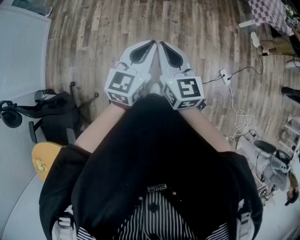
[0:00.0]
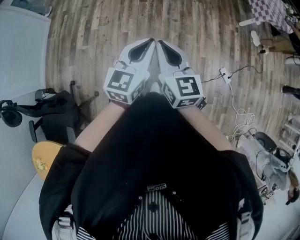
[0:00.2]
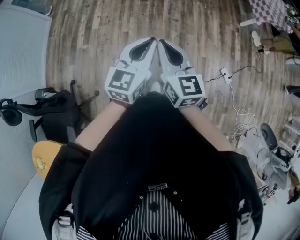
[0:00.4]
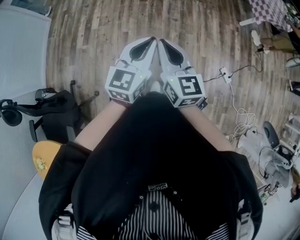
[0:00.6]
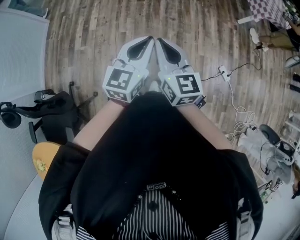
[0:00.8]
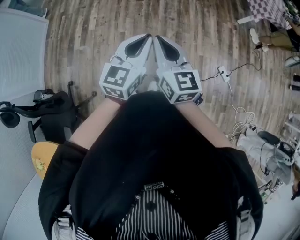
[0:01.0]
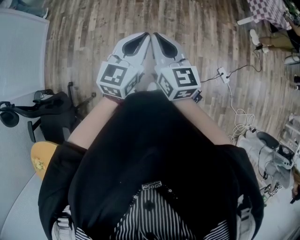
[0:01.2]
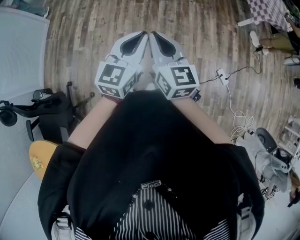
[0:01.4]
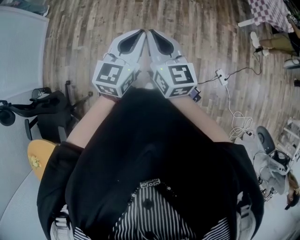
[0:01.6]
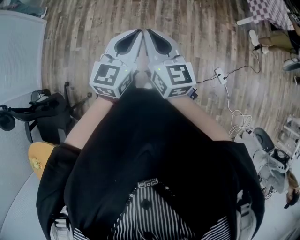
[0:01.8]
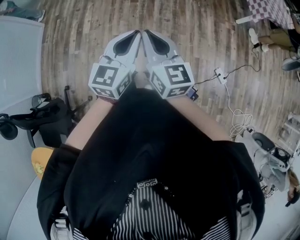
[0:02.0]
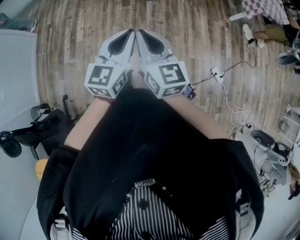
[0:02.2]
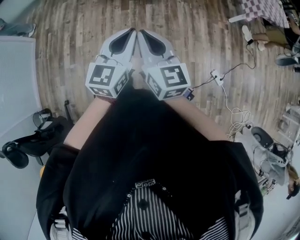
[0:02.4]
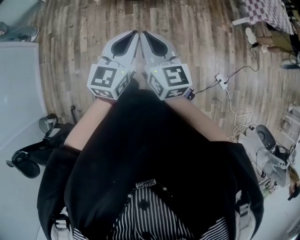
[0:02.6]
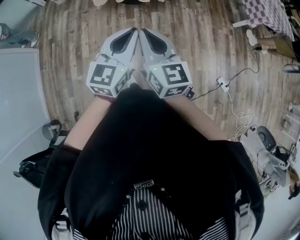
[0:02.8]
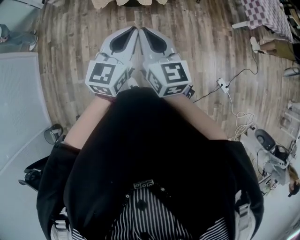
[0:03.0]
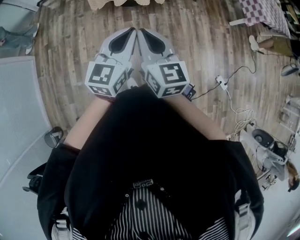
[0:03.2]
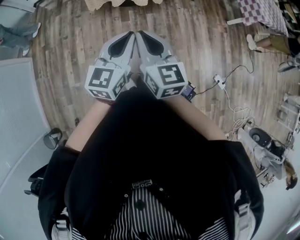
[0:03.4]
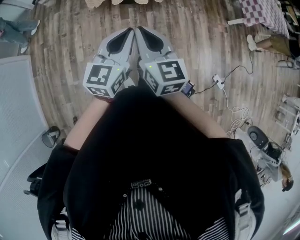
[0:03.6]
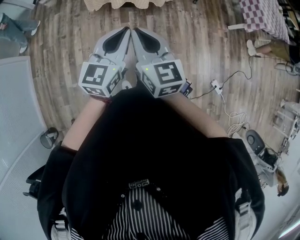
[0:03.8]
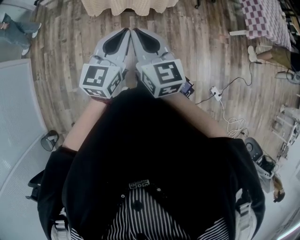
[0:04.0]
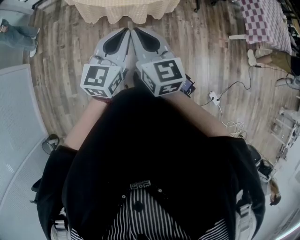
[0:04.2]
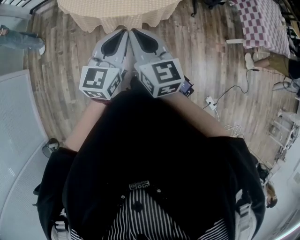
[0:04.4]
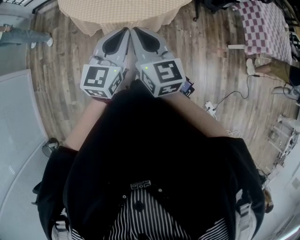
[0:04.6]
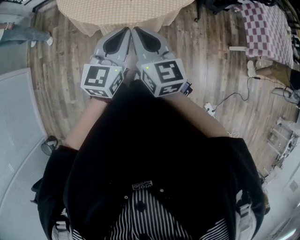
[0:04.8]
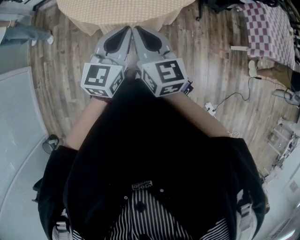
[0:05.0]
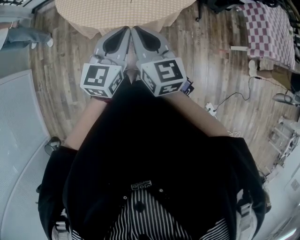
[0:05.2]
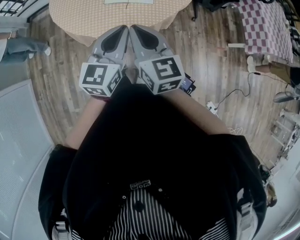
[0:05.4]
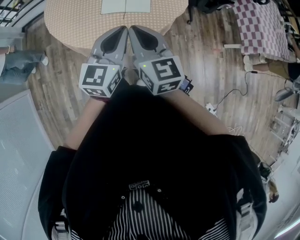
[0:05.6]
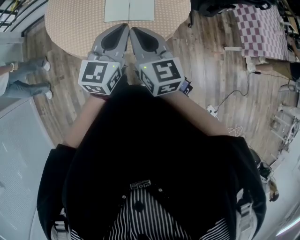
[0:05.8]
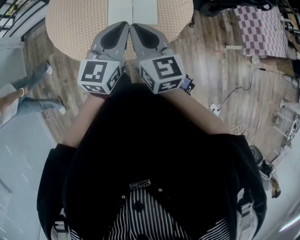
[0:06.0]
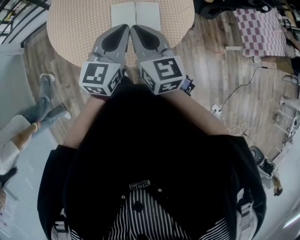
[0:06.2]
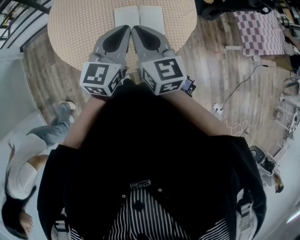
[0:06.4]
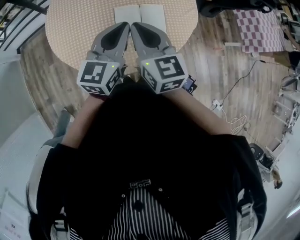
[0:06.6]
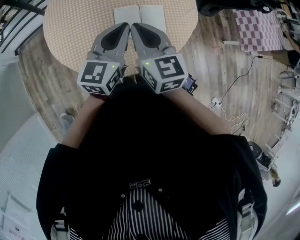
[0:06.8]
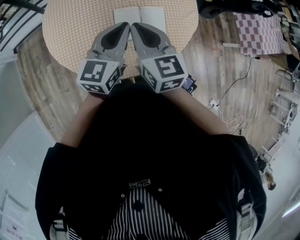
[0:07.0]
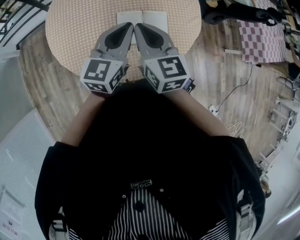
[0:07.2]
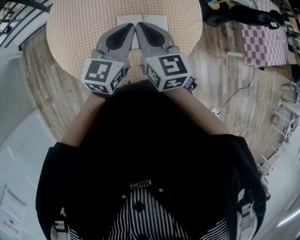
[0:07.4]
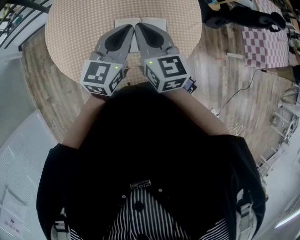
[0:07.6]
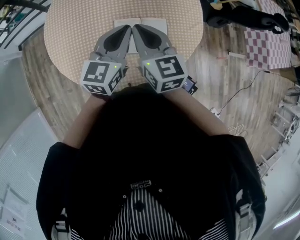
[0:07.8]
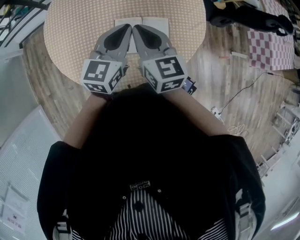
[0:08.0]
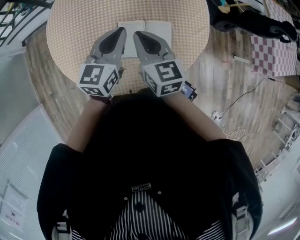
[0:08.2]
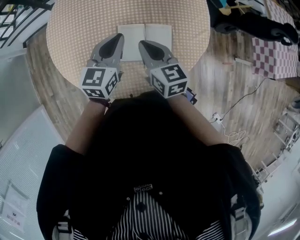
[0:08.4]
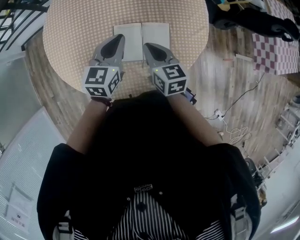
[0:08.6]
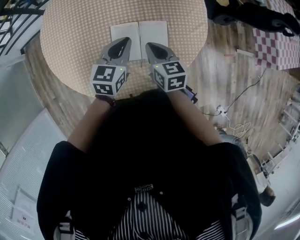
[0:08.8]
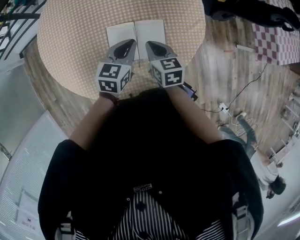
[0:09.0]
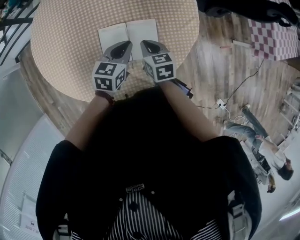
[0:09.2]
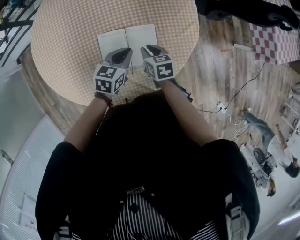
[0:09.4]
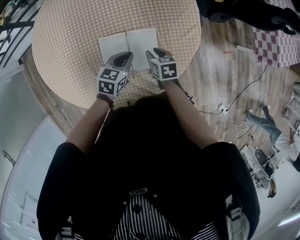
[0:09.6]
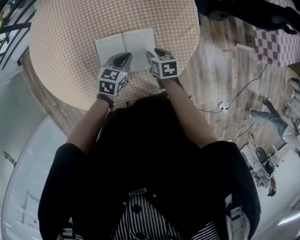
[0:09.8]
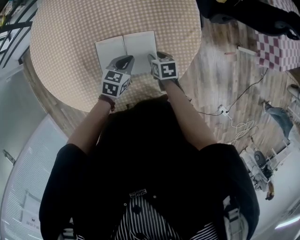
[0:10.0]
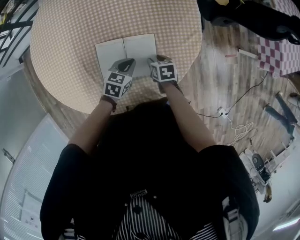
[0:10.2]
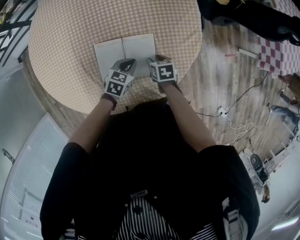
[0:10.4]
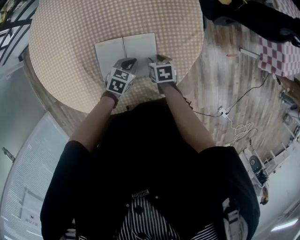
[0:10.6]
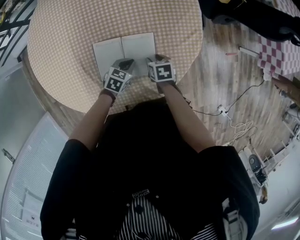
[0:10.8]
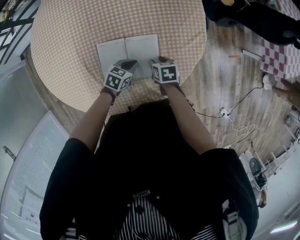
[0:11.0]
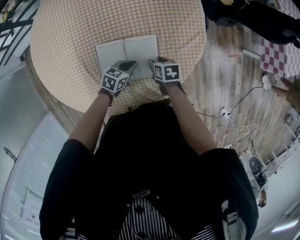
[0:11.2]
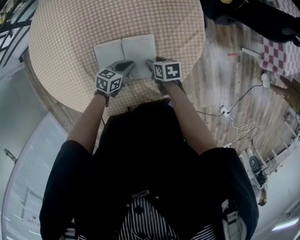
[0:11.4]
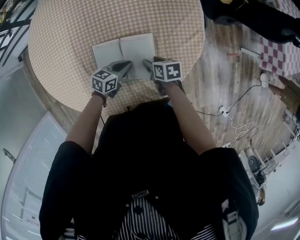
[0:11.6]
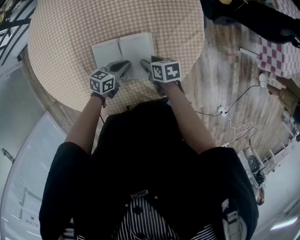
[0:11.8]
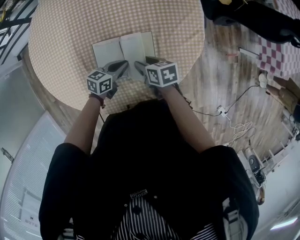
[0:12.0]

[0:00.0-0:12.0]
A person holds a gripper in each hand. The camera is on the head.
0:00.0 to 0:01.6: The right gripper goes some 5 cm to the right. The left gripper ends up about 5 cm from where it was.
0:01.6 to 0:03.0: The pair of grippers is taken forward, approximately 40 cm.
0:03.0 to 0:04.4: The two grippers go roughly 35 cm forward.
0:04.4 to 0:06.0: Both grippers travel together forward, roughly 35 cm.
0:06.0 to 0:07.6: Both grippers travel together forward, approximately 20 cm.
0:07.6 to 0:09.0: The left gripper moves downward, approximately 15 cm, and changes its angle by roughly 20 degrees. Meanwhile the right gripper moves downward and to the right, some 25 cm, and rotates roughly 30 degrees.
0:09.0 to 0:10.4: The right gripper shifts some 20 cm downward and to the right, turns by roughly 30 degrees, and opens up. Meanwhile the left gripper goes roughly 15 cm downward, and rotates some 20 degrees.
0:10.4 to 0:12.0: The left gripper changes its angle by roughly 30 degrees; the right gripper shifts about 10 cm upward.

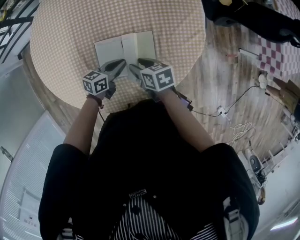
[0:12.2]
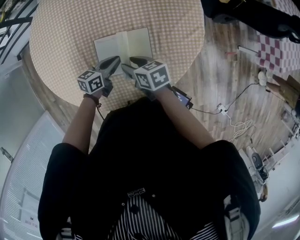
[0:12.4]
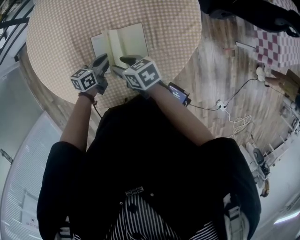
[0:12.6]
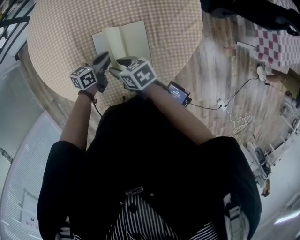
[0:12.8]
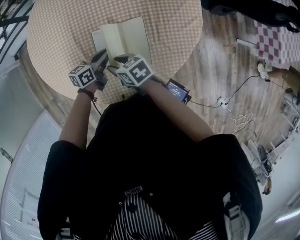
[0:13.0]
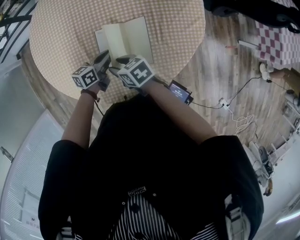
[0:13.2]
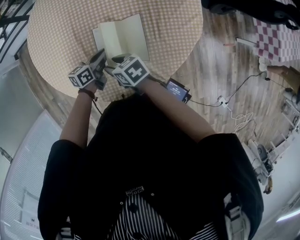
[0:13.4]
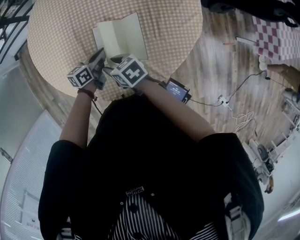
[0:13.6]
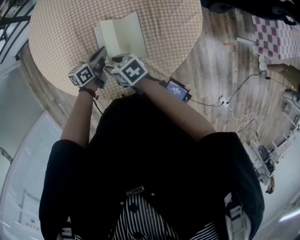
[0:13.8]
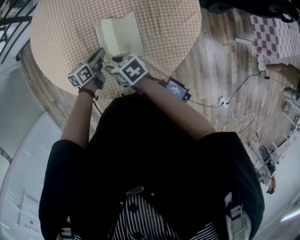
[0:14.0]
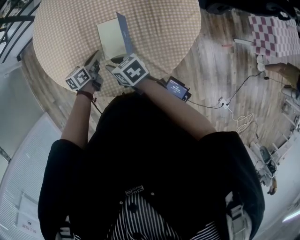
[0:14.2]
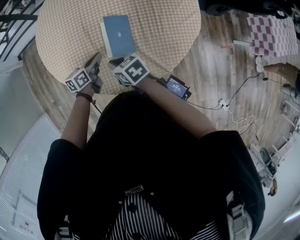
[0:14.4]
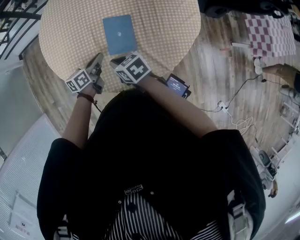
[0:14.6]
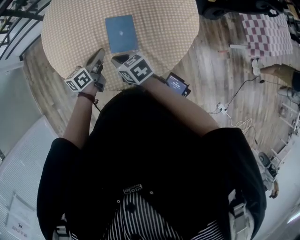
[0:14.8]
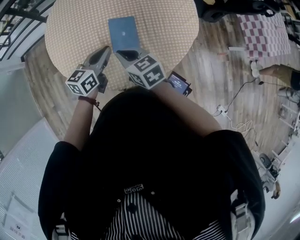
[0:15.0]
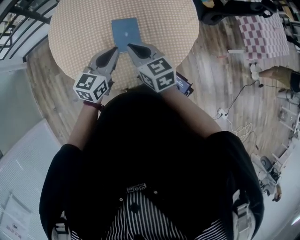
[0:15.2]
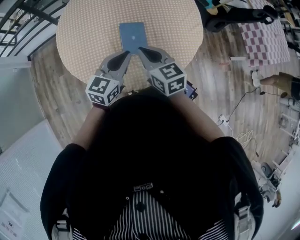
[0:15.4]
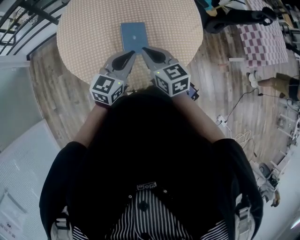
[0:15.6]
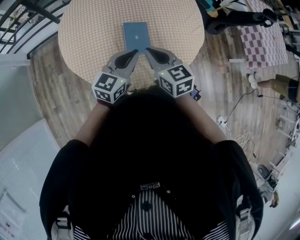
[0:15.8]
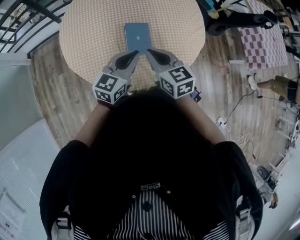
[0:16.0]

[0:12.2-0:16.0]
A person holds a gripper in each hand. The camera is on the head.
0:12.2 to 0:13.4: The right gripper shifts roughly 15 cm to the left. Meanwhile the left gripper travels to the left by approximately 10 cm.
0:13.4 to 0:14.8: The right gripper is displaced upward, backward and to the left by roughly 10 cm, and closes its fingers. Meanwhile the left gripper moves to the left, upward and backward, about 15 cm.
0:14.8 to 0:16.0: The left gripper travels upward and backward by about 15 cm, and swivels some 40 degrees. Meanwhile the right gripper shifts about 15 cm upward, and swivels roughly 30 degrees.

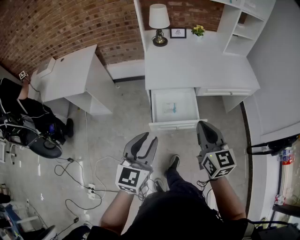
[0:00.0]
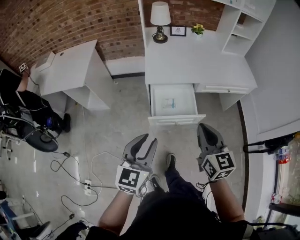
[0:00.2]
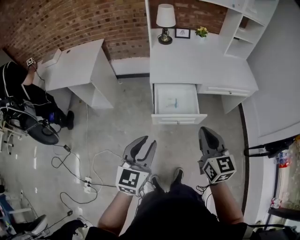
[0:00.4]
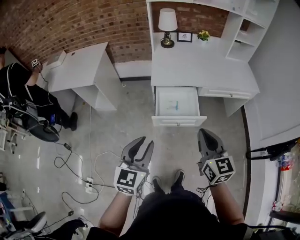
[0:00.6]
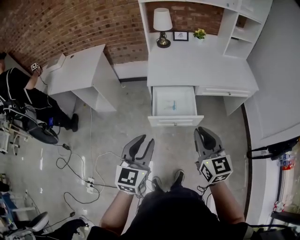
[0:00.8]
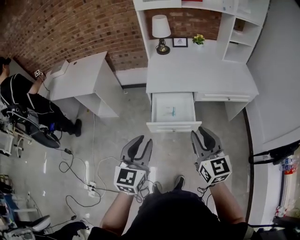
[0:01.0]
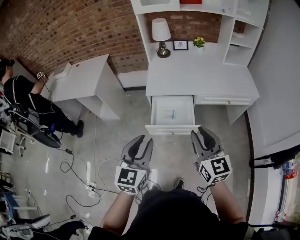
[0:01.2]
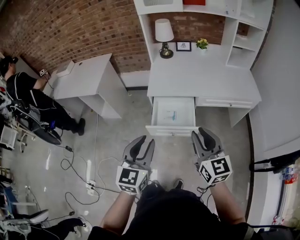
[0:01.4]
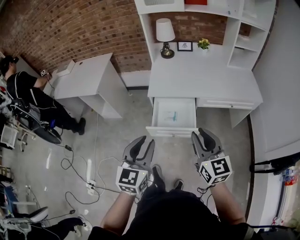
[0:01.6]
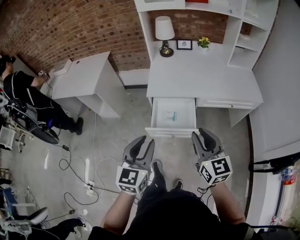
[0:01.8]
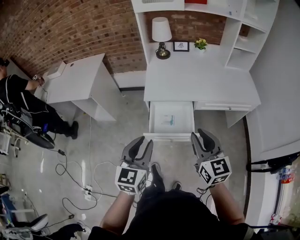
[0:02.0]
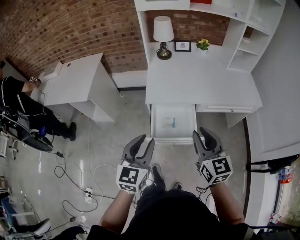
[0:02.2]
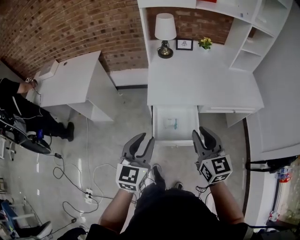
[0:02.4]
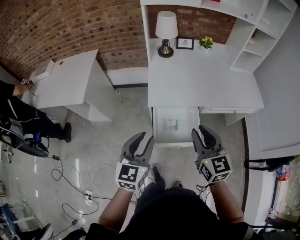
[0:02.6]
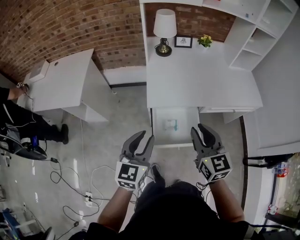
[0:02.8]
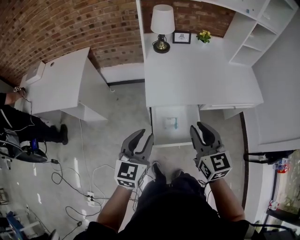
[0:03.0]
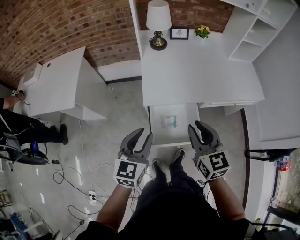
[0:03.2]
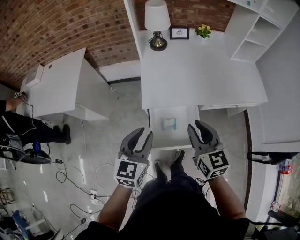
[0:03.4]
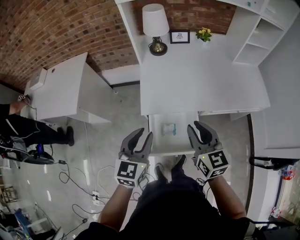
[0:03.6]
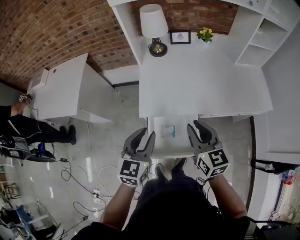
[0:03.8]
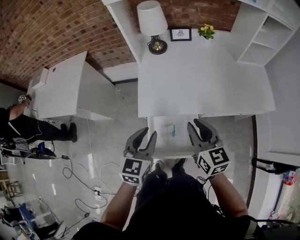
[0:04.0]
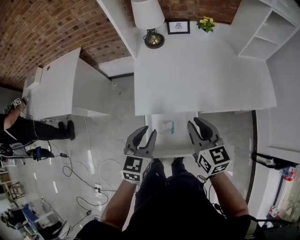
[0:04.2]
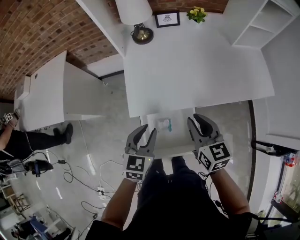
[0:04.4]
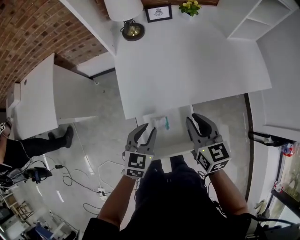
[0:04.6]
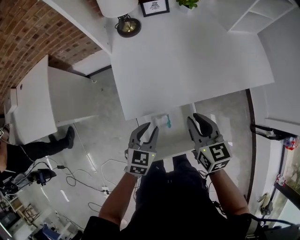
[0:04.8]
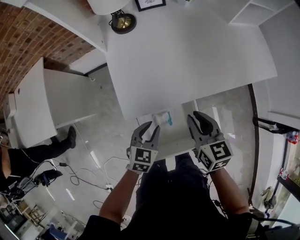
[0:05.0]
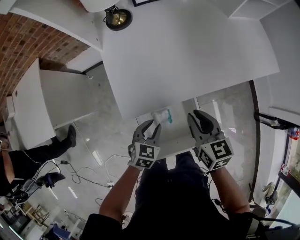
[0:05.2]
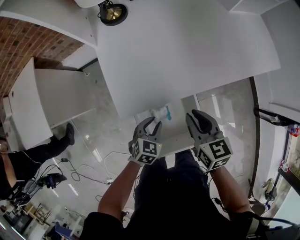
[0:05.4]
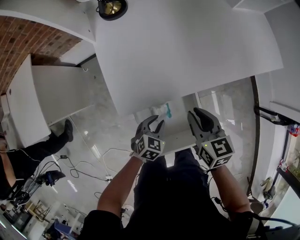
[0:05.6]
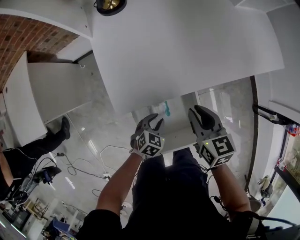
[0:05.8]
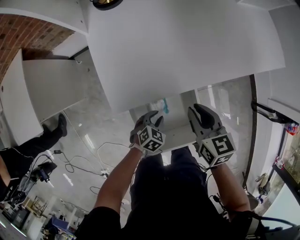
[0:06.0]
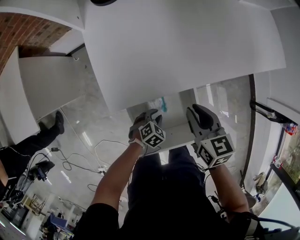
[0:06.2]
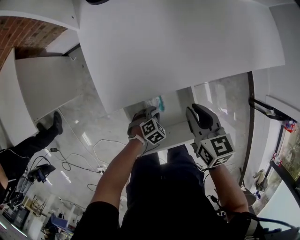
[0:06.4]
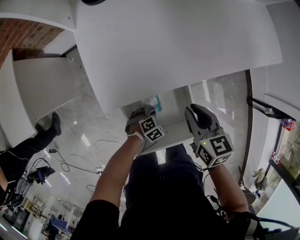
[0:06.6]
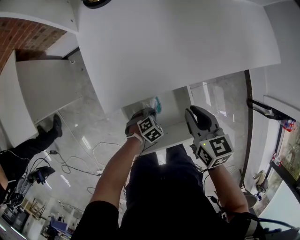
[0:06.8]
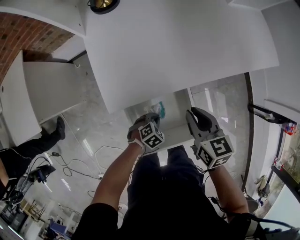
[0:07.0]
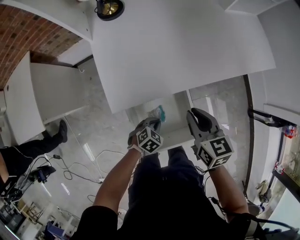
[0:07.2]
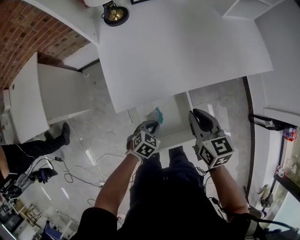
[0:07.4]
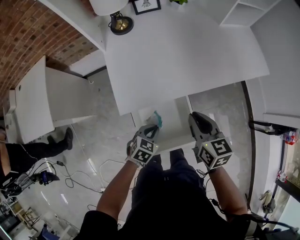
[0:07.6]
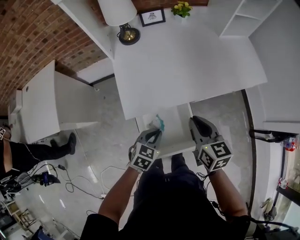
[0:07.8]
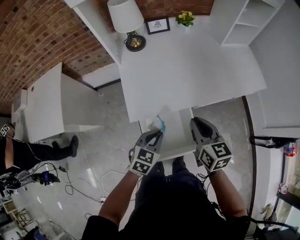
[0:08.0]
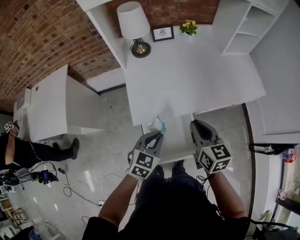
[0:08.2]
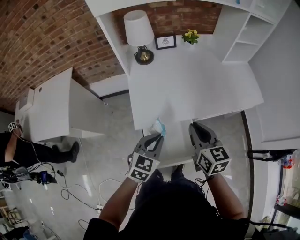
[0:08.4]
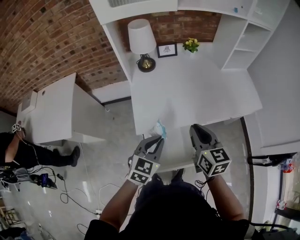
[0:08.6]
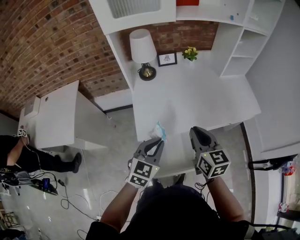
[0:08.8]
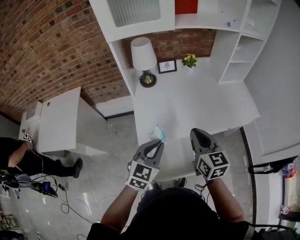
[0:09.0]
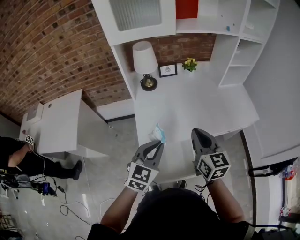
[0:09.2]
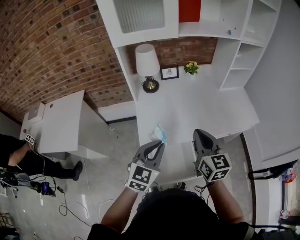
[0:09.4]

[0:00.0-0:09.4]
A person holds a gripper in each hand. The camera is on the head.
0:00.0 to 0:01.6: The two grippers go about 5 cm to the right. The right gripper opens up.
0:01.6 to 0:03.2: Both grippers travel together forward and to the left, approximately 25 cm.
0:03.2 to 0:04.8: The left gripper goes roughly 25 cm downward, forward and to the right, and swivels about 20 degrees; the right gripper is displaced forward, downward and to the right by some 20 cm.
0:04.8 to 0:06.2: The right gripper shifts approximately 10 cm downward, while the left gripper heads downward, covering some 25 cm, and changes its angle by roughly 40 degrees.
0:06.2 to 0:07.8: The left gripper goes approximately 25 cm upward, changes its angle by about 30 degrees, and closes its fingers. The right gripper moves upward, approximately 15 cm.
0:07.8 to 0:09.4: The left gripper travels upward by some 25 cm, and swivels roughly 30 degrees; the right gripper is displaced upward by approximately 15 cm, and swivels roughly 20 degrees.
